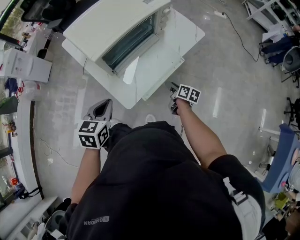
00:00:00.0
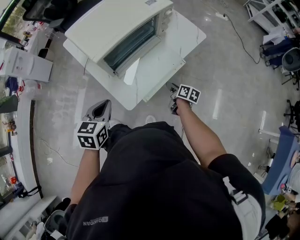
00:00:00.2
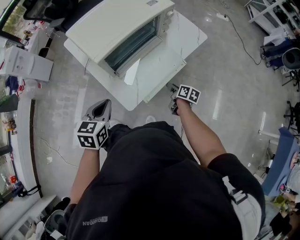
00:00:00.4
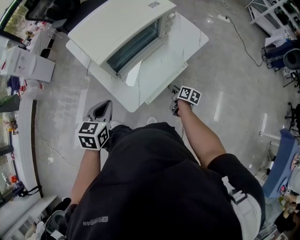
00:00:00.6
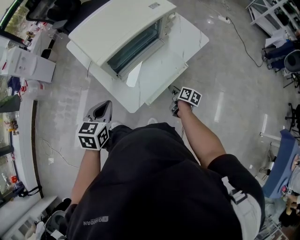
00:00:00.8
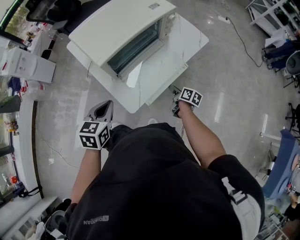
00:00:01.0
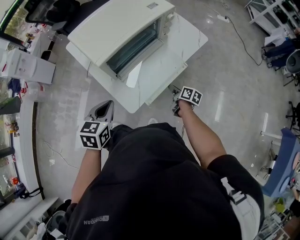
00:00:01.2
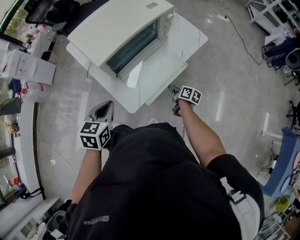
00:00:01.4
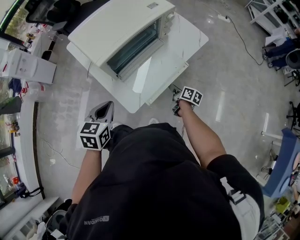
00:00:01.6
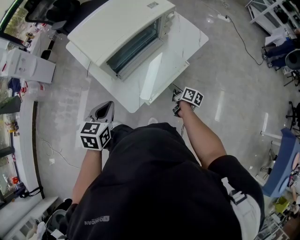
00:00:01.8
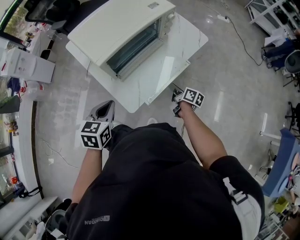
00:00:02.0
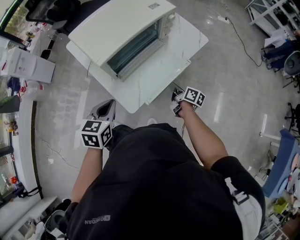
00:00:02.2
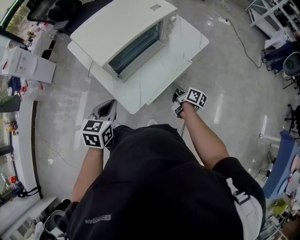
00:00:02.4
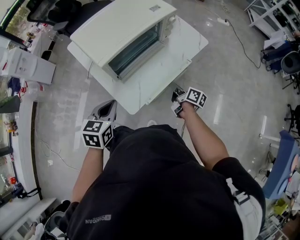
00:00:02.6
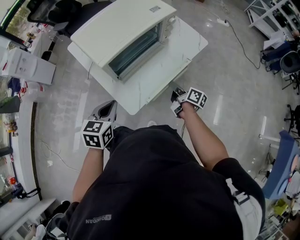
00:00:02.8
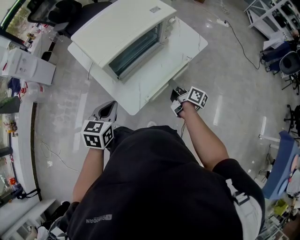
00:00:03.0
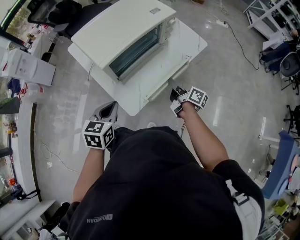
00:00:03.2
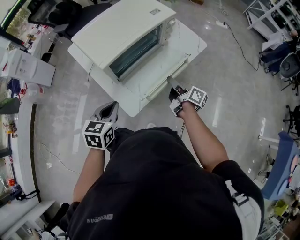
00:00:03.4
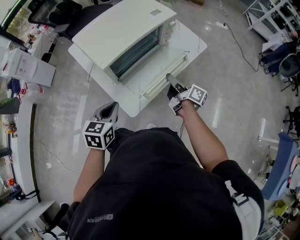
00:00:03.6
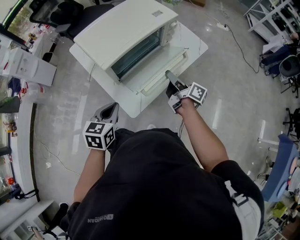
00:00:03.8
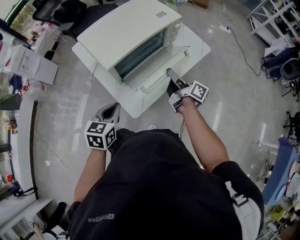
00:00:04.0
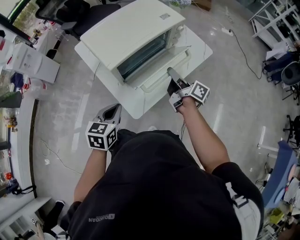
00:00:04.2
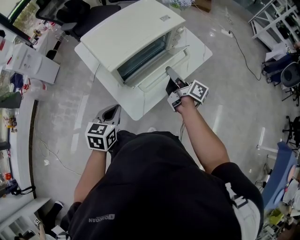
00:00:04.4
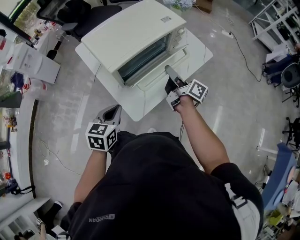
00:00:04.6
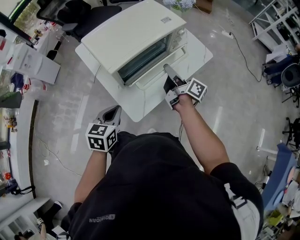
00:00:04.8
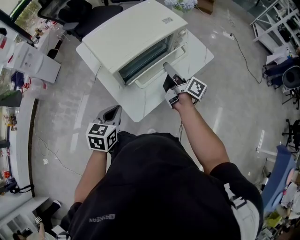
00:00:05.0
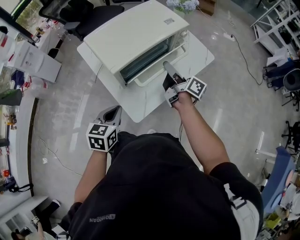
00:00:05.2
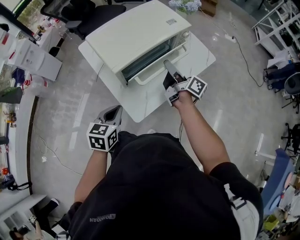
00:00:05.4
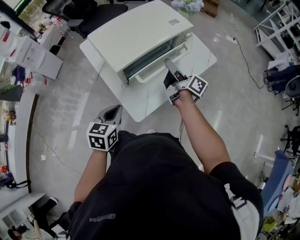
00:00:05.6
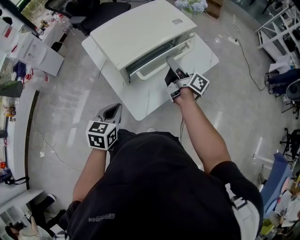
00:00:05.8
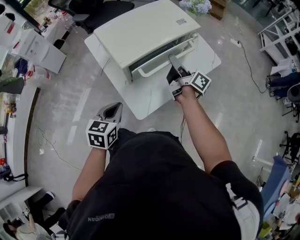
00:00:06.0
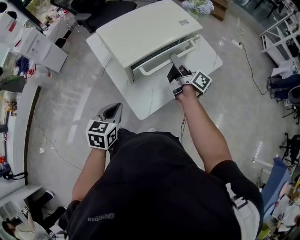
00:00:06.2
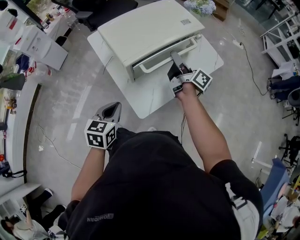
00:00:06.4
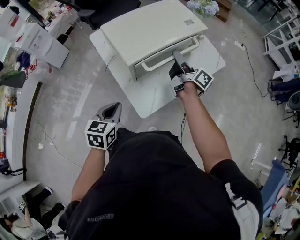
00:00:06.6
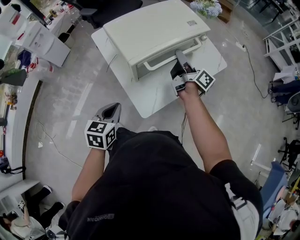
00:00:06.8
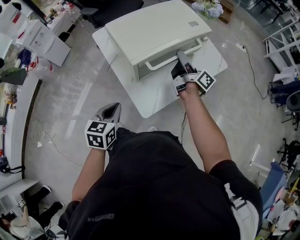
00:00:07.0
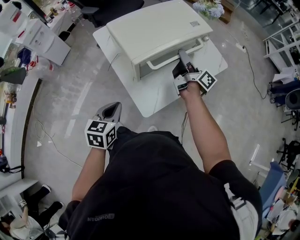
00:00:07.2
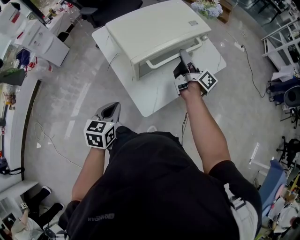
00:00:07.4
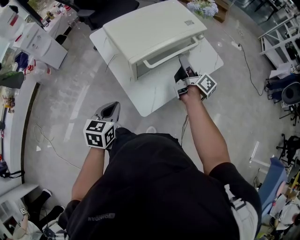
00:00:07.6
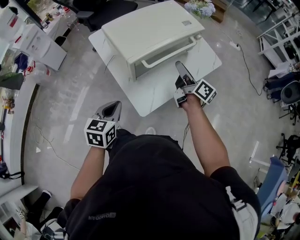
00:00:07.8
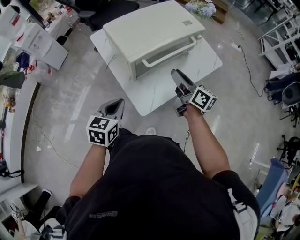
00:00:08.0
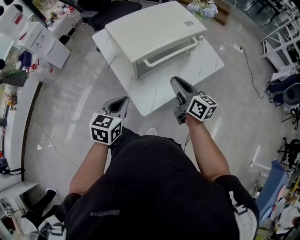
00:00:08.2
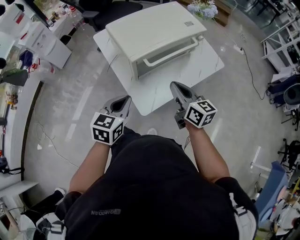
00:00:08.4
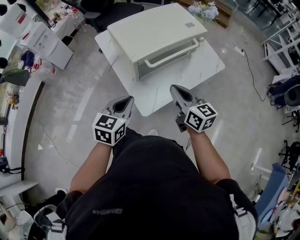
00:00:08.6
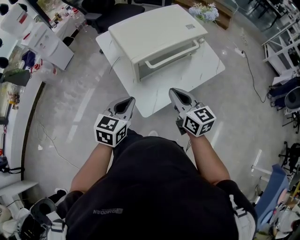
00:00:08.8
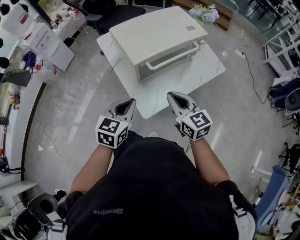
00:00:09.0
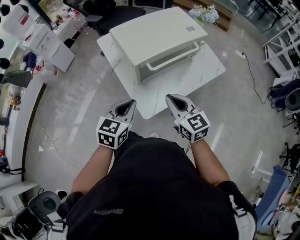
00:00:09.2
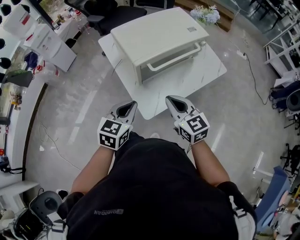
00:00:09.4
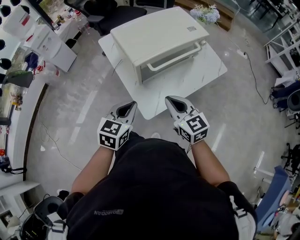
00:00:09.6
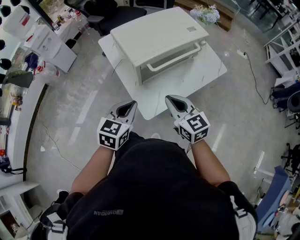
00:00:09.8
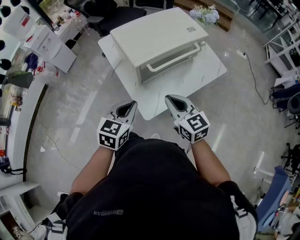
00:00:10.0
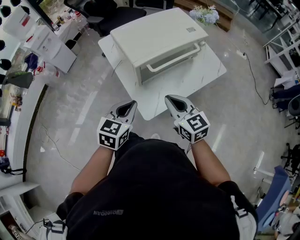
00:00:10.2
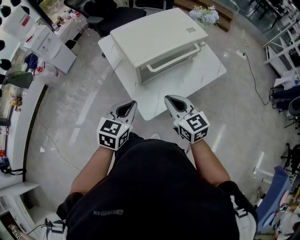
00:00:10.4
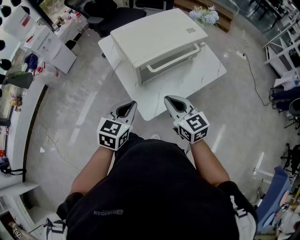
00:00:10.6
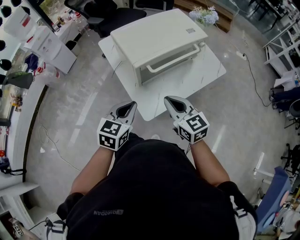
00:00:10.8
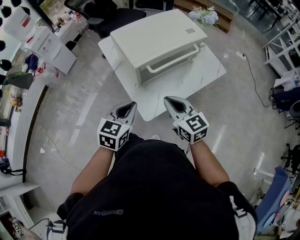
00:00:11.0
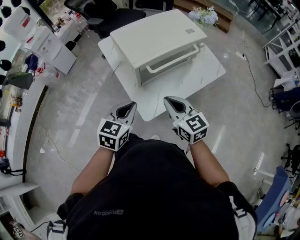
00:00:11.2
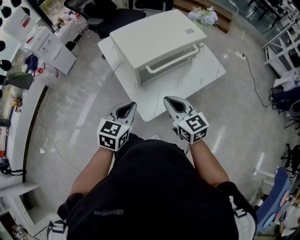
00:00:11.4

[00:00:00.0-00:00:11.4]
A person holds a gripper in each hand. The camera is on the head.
00:00:00.0 to 00:00:01.4: The grippers make only small movements.
00:00:01.4 to 00:00:02.8: The right gripper heads upward, covering approximately 10 cm.
00:00:02.8 to 00:00:04.2: The right gripper moves upward and forward, roughly 15 cm.
00:00:04.2 to 00:00:05.6: The right gripper heads forward, covering about 5 cm.
00:00:05.6 to 00:00:07.2: The left gripper travels to the left by roughly 5 cm.
00:00:07.2 to 00:00:08.6: The right gripper moves backward, about 20 cm, twists roughly 50 degrees counterclockwise, seen from behind, and closes its fingers. The left gripper travels to the right by roughly 5 cm.
00:00:08.6 to 00:00:10.0: The grippers stay close to where they were, moving slightly.
00:00:10.0 to 00:00:11.4: Both grippers stay about where they are.

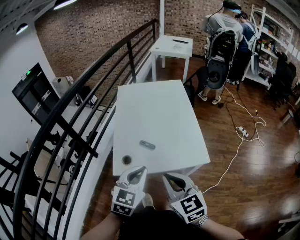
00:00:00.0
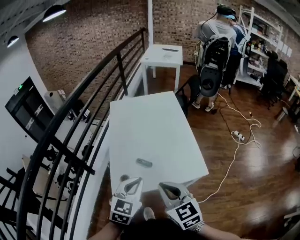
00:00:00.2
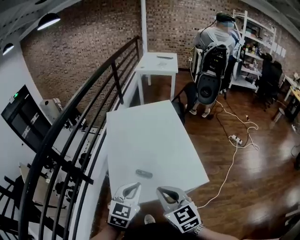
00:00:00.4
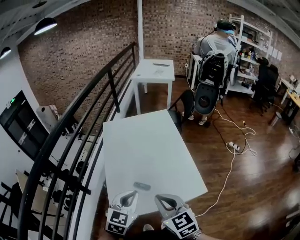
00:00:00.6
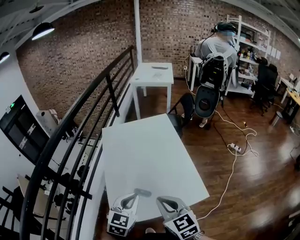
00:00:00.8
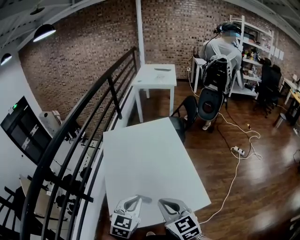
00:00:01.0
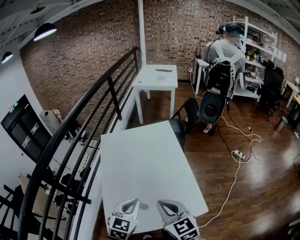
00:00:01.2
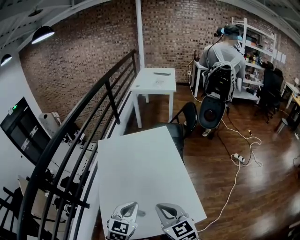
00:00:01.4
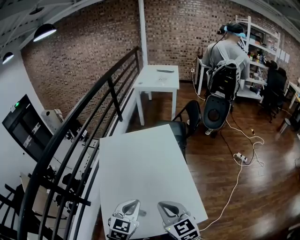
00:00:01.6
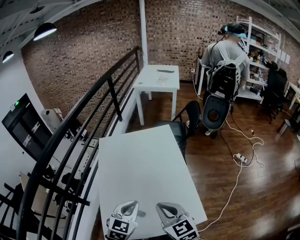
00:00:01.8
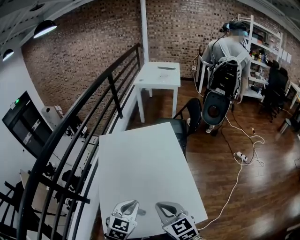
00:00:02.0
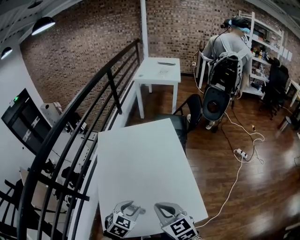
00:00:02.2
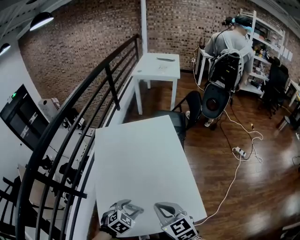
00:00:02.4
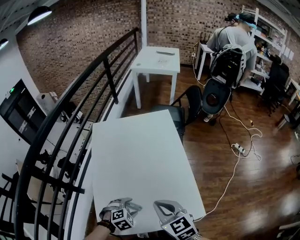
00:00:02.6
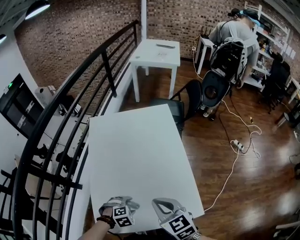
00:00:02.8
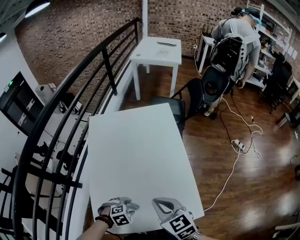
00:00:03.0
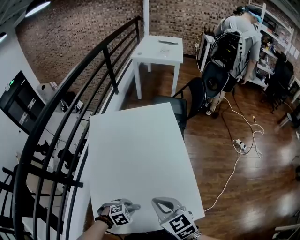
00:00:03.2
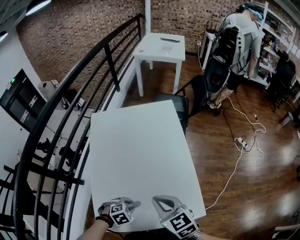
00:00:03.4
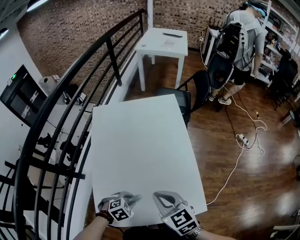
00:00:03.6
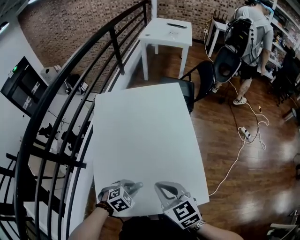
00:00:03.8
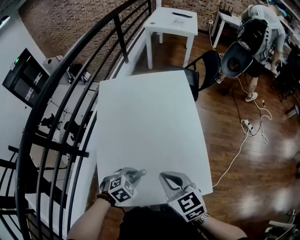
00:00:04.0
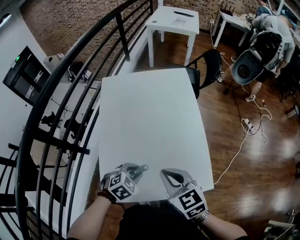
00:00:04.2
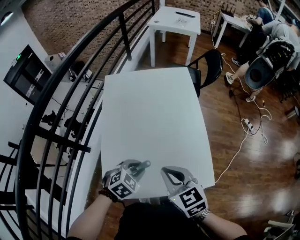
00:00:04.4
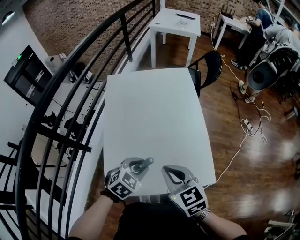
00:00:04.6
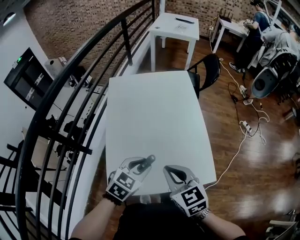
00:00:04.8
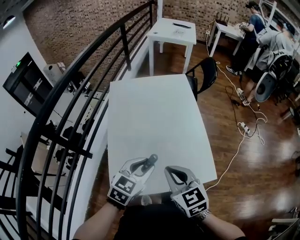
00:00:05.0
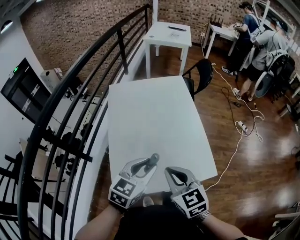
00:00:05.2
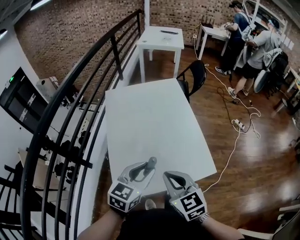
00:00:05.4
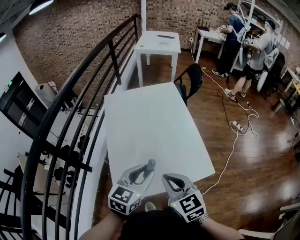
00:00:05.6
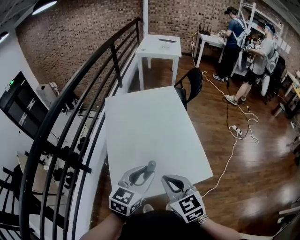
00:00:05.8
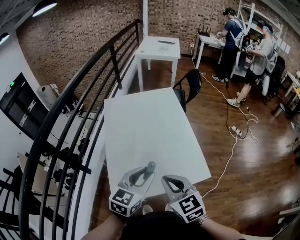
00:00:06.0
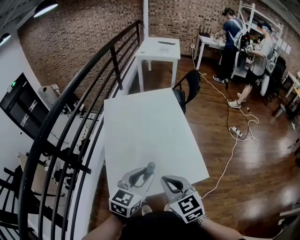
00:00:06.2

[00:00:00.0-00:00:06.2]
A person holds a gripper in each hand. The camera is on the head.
00:00:00.0 to 00:00:01.6: The grippers both shift forward by about 25 cm.
00:00:01.6 to 00:00:03.2: The left gripper moves downward, some 25 cm, tips its fingers downward by some 40 degrees, and opens its fingers. The right gripper moves downward, roughly 10 cm.
00:00:03.2 to 00:00:04.6: The left gripper is displaced upward by about 10 cm, and changes its angle by some 30 degrees. The right gripper shifts roughly 5 cm backward.
00:00:04.6 to 00:00:06.2: The left gripper moves upward and backward, roughly 15 cm, and angles its fingers upward, by about 30 degrees, while the right gripper heads backward and upward, covering about 10 cm.

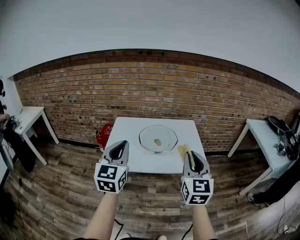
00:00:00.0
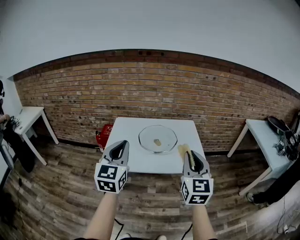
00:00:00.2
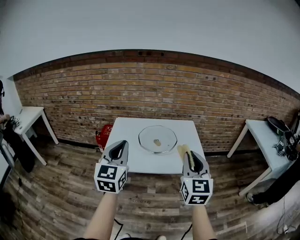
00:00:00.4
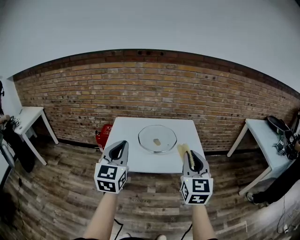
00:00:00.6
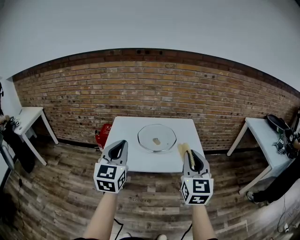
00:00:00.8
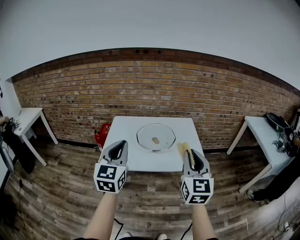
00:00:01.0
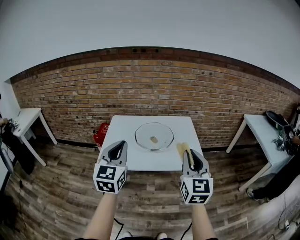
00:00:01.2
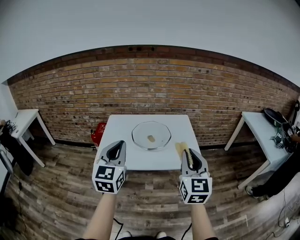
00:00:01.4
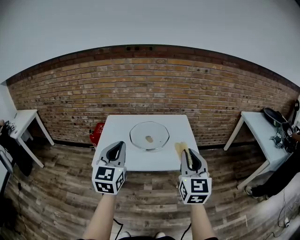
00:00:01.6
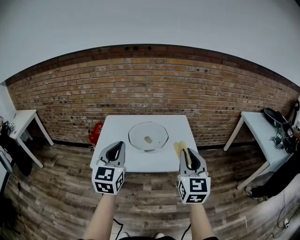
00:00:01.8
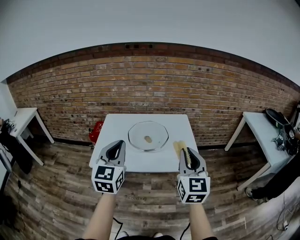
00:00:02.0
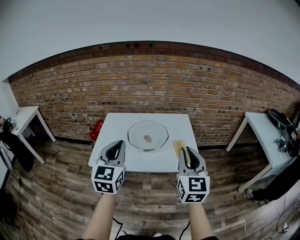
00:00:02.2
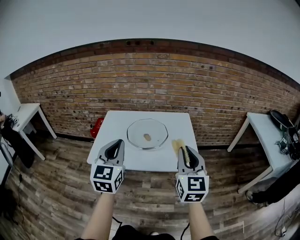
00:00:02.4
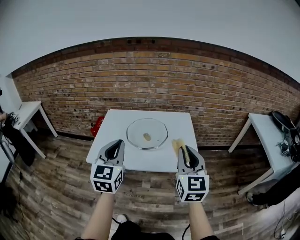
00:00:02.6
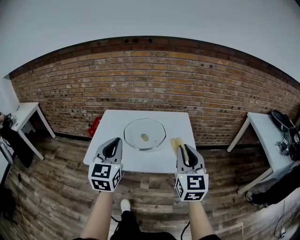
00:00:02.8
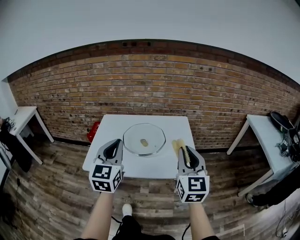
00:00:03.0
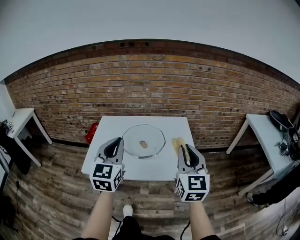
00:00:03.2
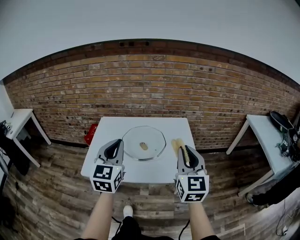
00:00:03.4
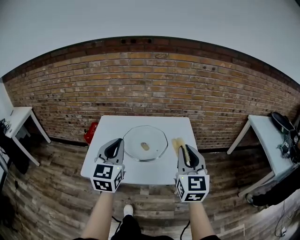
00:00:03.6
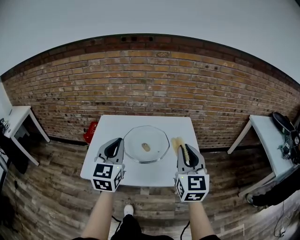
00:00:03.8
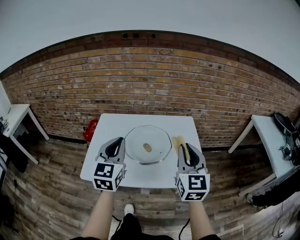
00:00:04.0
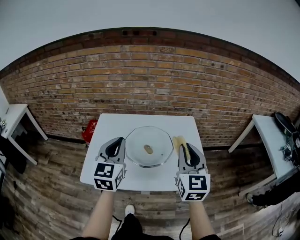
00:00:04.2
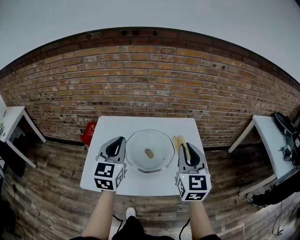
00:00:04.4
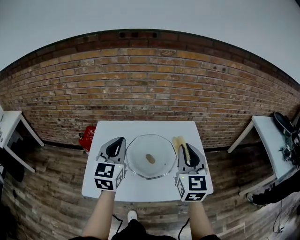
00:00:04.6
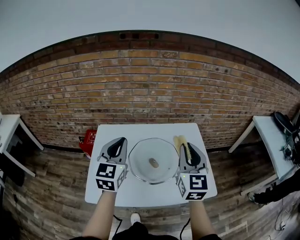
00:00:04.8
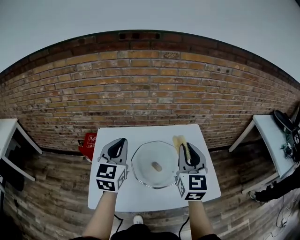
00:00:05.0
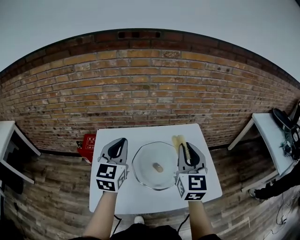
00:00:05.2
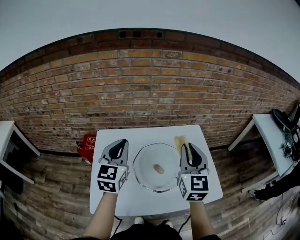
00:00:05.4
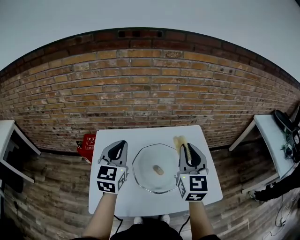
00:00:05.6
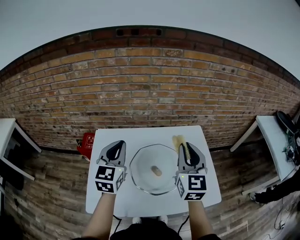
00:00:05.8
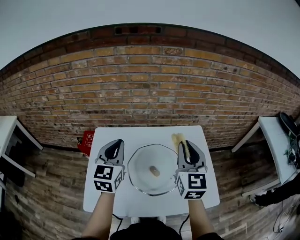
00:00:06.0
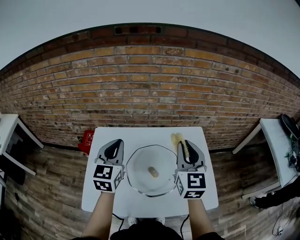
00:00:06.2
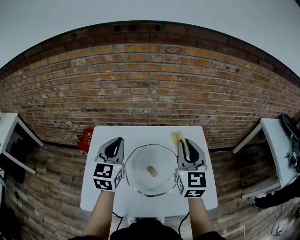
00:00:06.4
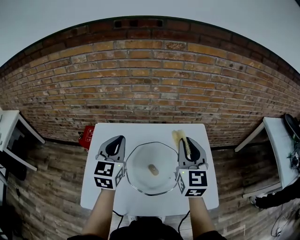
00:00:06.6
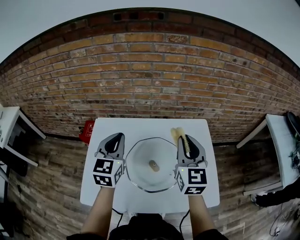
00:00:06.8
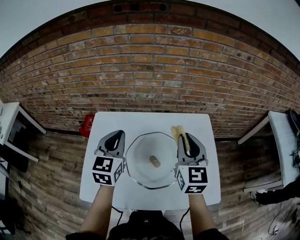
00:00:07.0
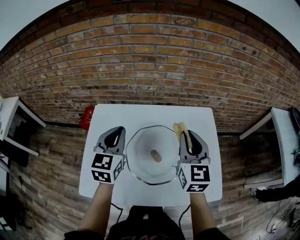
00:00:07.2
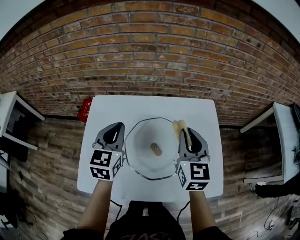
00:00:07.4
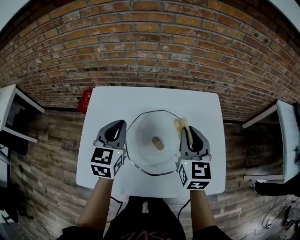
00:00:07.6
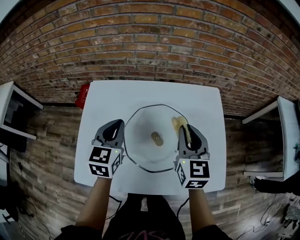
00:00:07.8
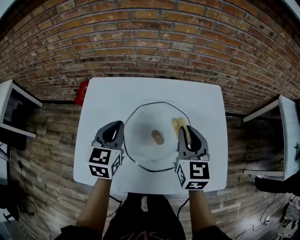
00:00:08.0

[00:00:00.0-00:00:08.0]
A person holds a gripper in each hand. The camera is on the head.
00:00:00.0 to 00:00:01.6: The grippers make only small movements.
00:00:01.6 to 00:00:03.2: Both grippers move forward, about 10 cm.
00:00:03.2 to 00:00:04.8: The two grippers go about 25 cm forward and to the left.
00:00:04.8 to 00:00:06.4: The grippers both shift forward by approximately 10 cm.
00:00:06.4 to 00:00:08.0: The grippers both shift downward by some 15 cm.
